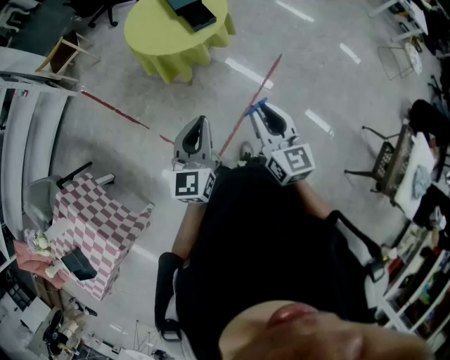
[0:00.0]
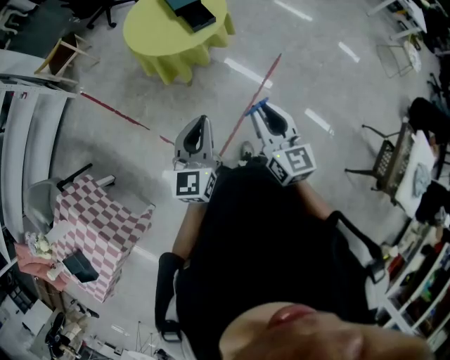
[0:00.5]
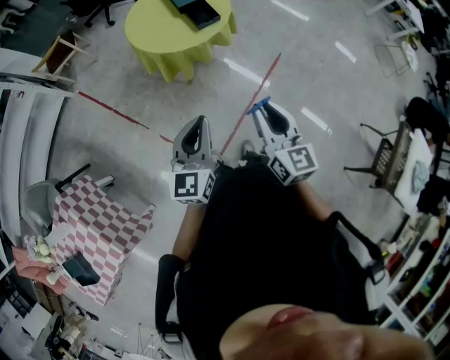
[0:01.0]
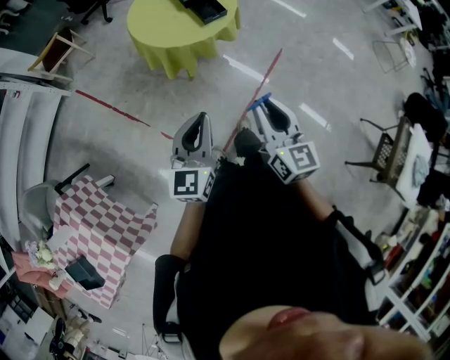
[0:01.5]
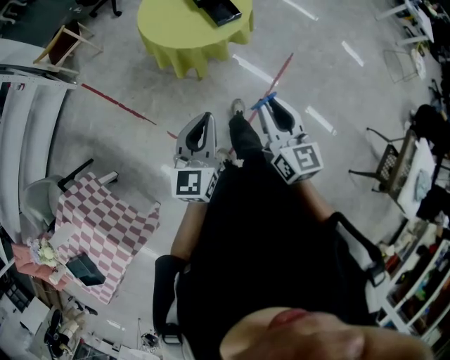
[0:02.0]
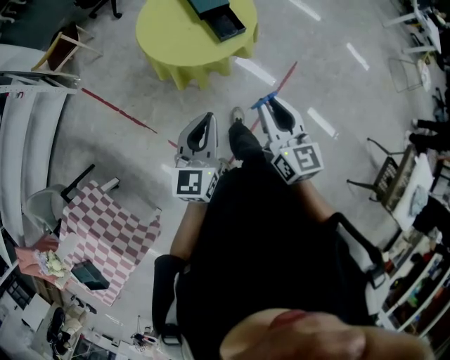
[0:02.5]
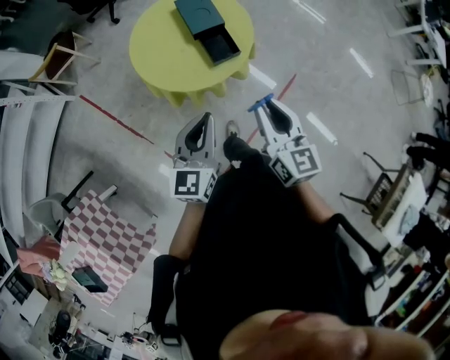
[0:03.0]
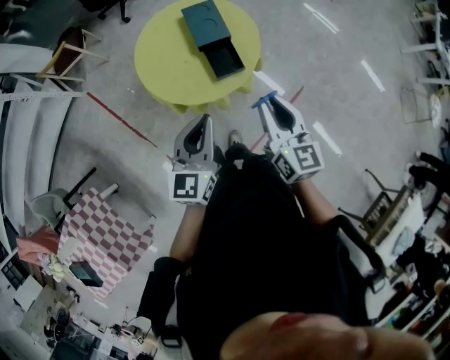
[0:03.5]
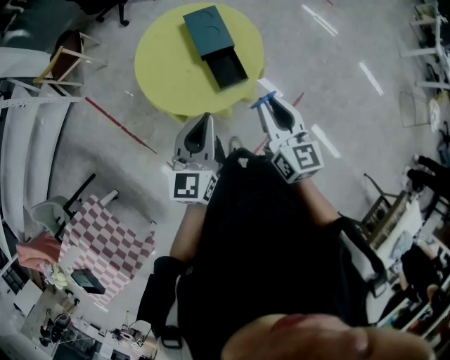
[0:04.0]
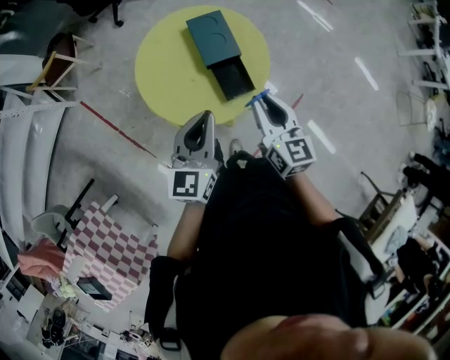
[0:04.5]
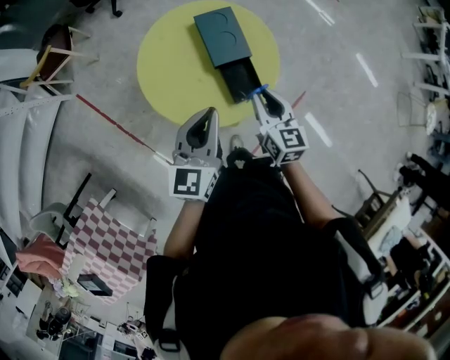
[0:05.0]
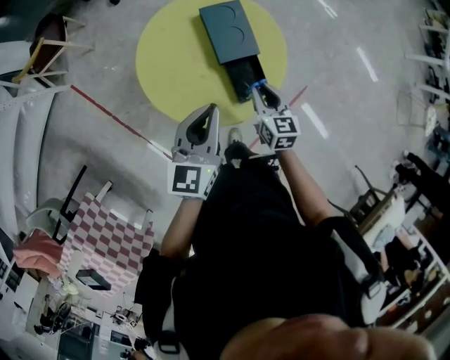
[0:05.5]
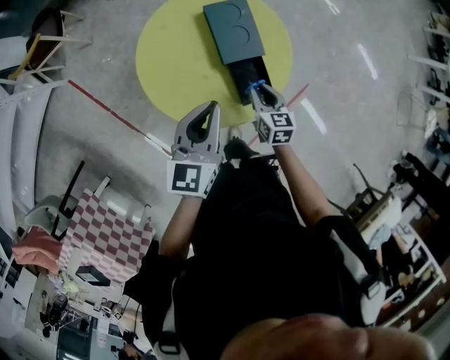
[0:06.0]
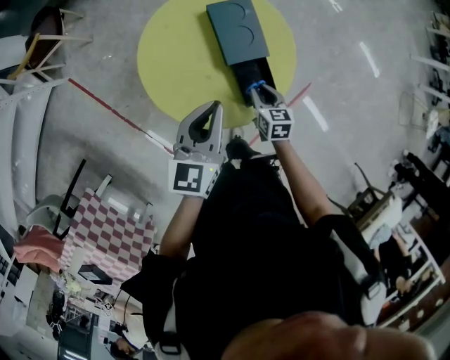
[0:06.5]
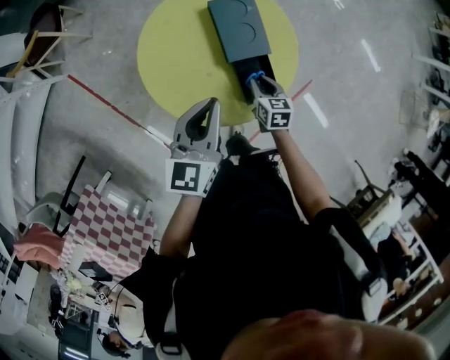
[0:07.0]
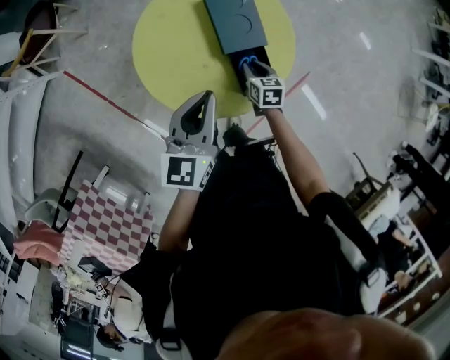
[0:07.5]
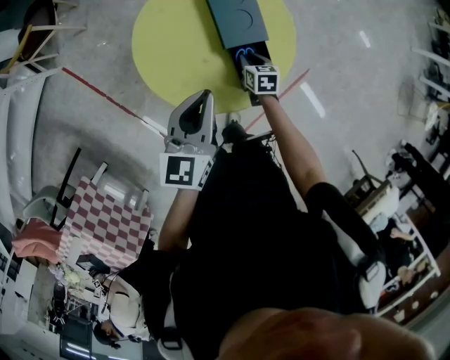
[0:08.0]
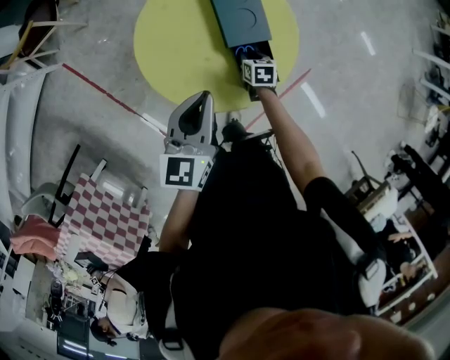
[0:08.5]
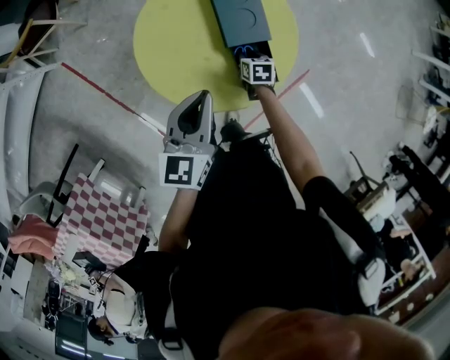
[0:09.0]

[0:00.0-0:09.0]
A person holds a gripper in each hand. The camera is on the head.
0:00.0 to 0:02.0: The left gripper goes roughly 10 cm to the left. The right gripper shifts roughly 10 cm to the left and forward.
0:02.0 to 0:04.5: The two grippers go some 40 cm forward.
0:04.5 to 0:07.0: The left gripper is displaced forward, downward and to the left by about 15 cm, while the right gripper heads downward, covering roughly 30 cm, and angles its fingers downward, by approximately 30 degrees.
0:07.0 to 0:09.0: The right gripper heads downward, covering about 10 cm.

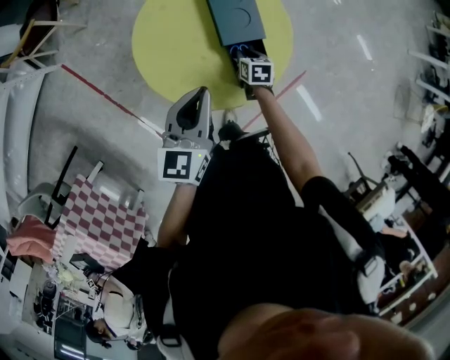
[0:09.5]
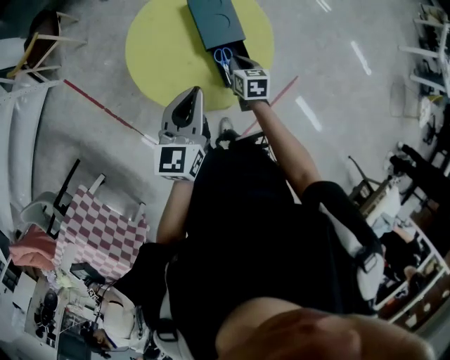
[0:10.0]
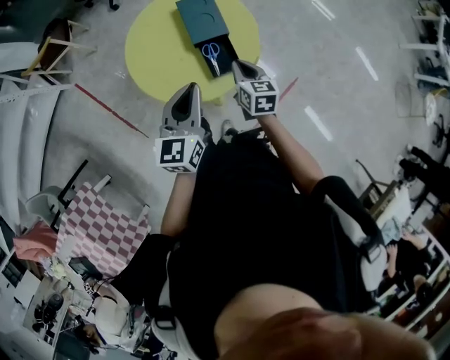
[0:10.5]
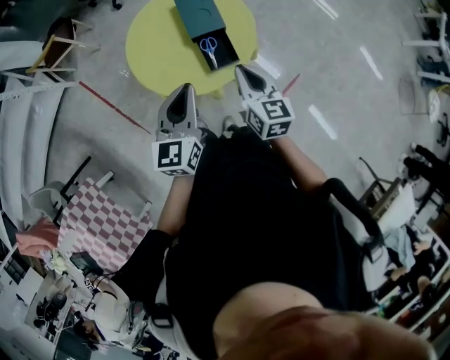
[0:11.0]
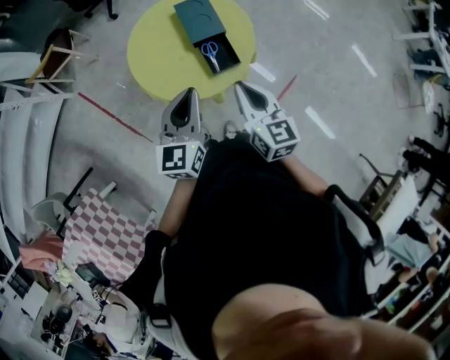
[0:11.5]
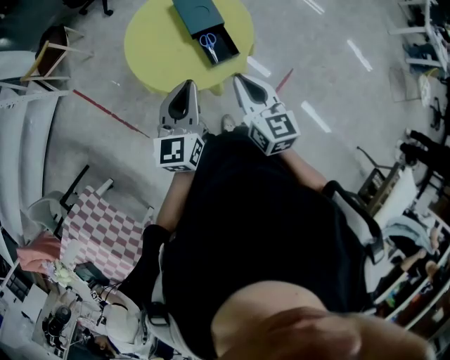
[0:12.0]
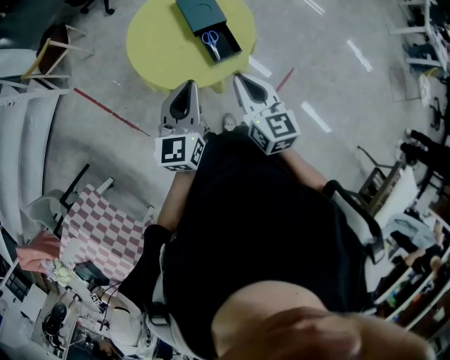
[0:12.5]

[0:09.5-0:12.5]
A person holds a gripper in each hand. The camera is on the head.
0:09.5 to 0:11.0: The right gripper moves upward and backward, some 35 cm, and tips its fingers upward by approximately 40 degrees. The left gripper moves backward, to the right and upward, about 15 cm.
0:11.0 to 0:12.5: The right gripper goes about 10 cm backward, to the left and upward. The left gripper shifts by some 5 cm.

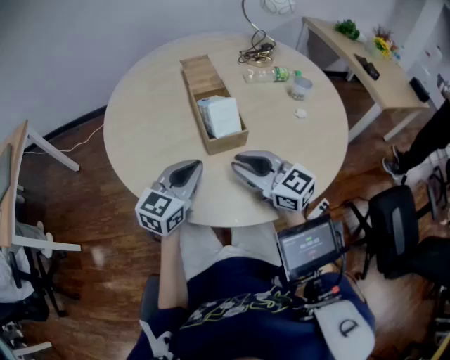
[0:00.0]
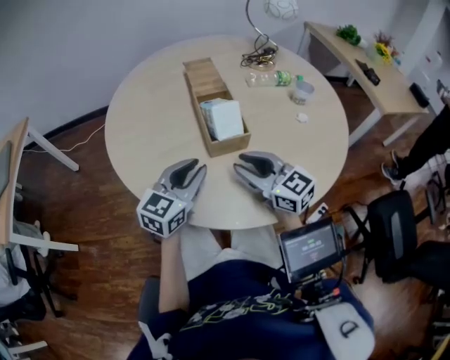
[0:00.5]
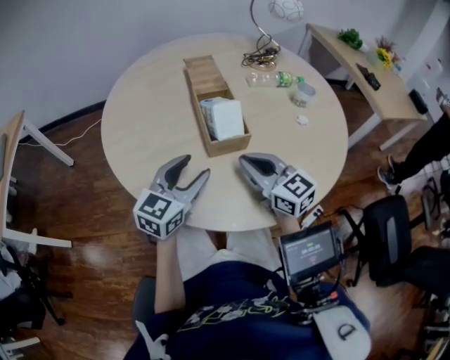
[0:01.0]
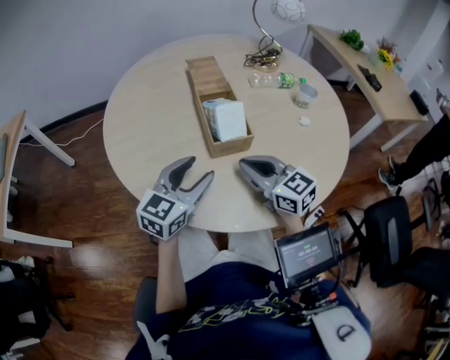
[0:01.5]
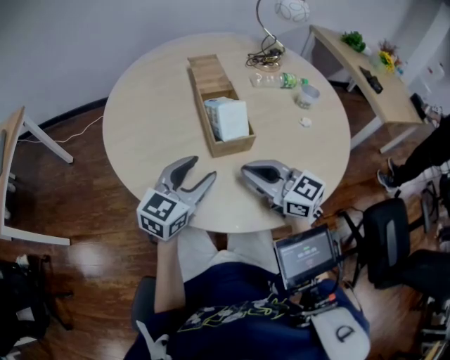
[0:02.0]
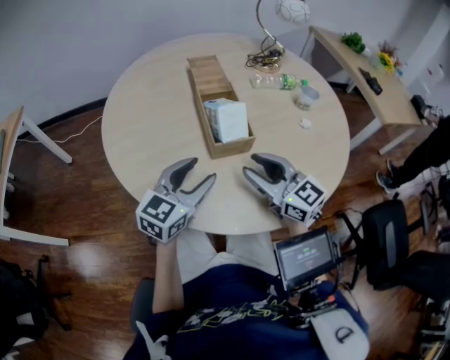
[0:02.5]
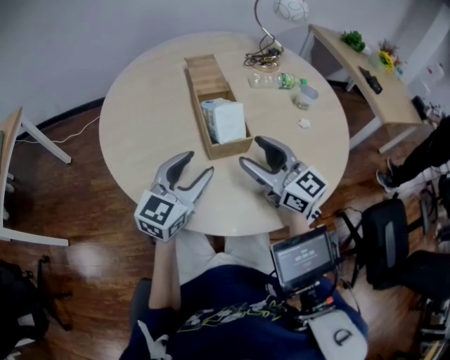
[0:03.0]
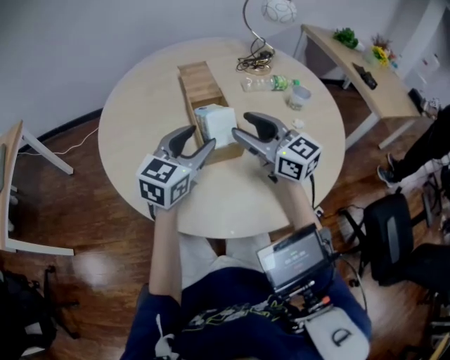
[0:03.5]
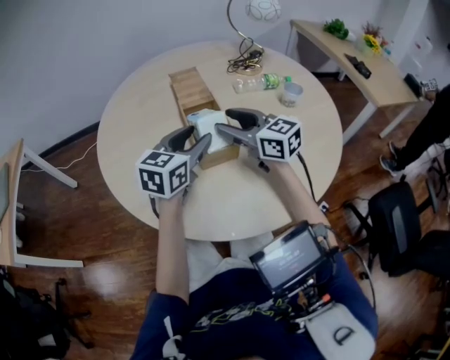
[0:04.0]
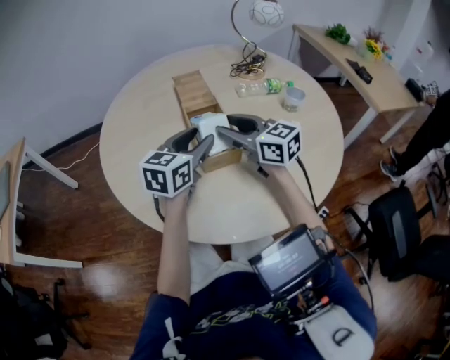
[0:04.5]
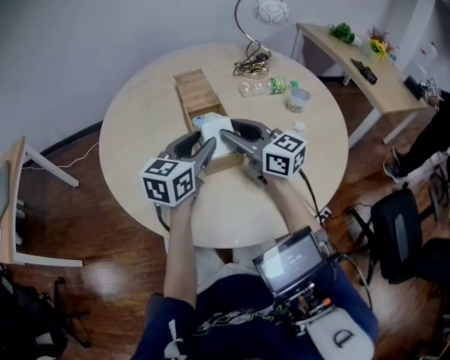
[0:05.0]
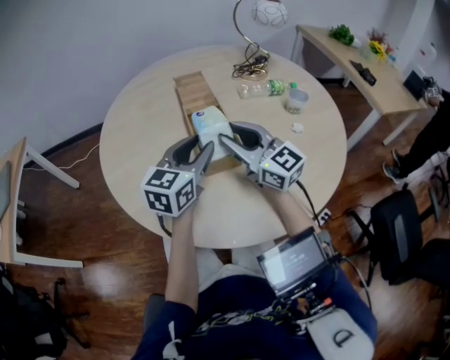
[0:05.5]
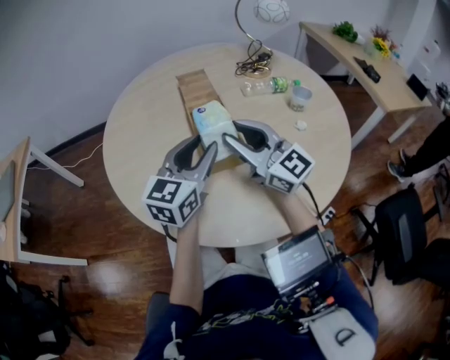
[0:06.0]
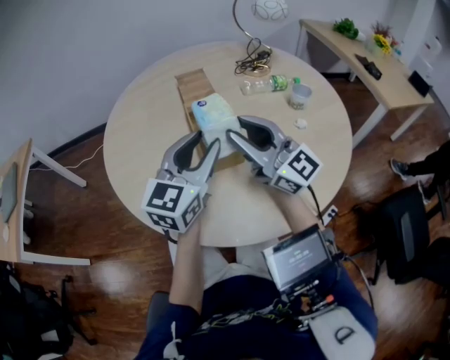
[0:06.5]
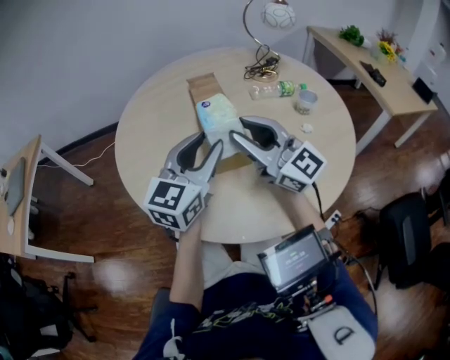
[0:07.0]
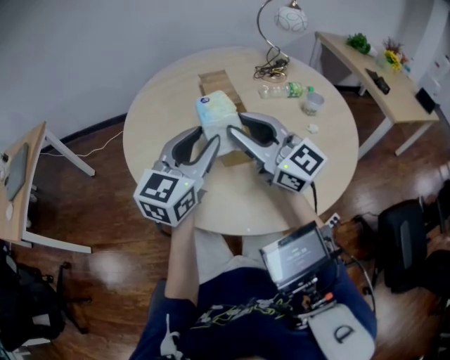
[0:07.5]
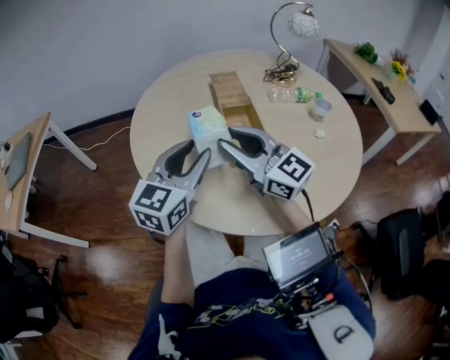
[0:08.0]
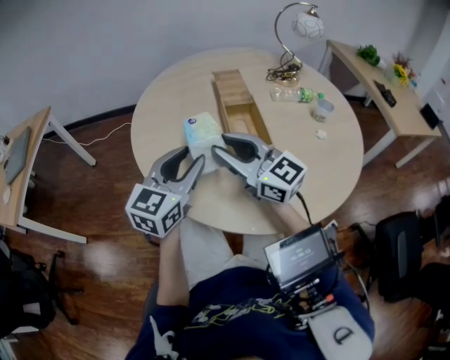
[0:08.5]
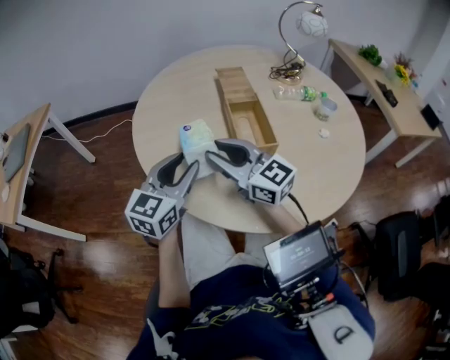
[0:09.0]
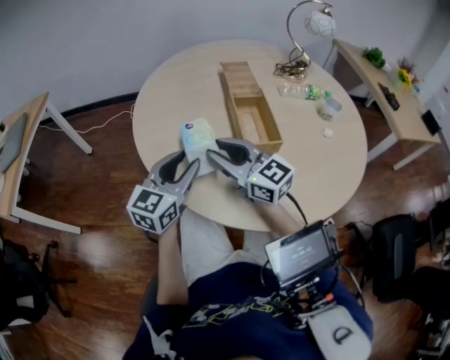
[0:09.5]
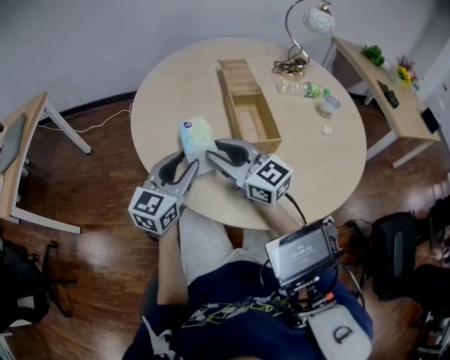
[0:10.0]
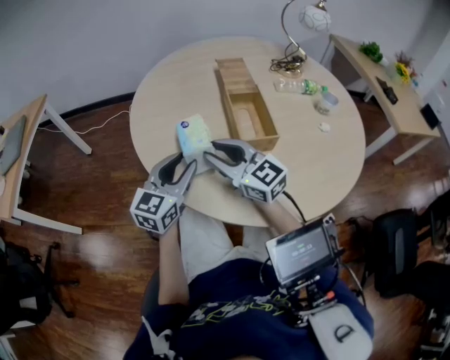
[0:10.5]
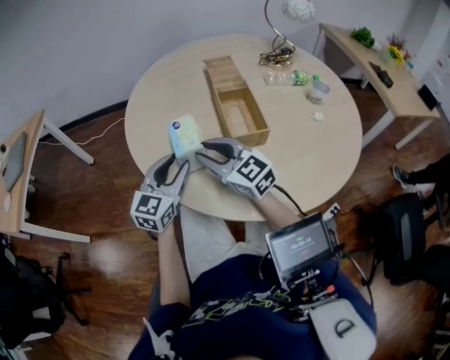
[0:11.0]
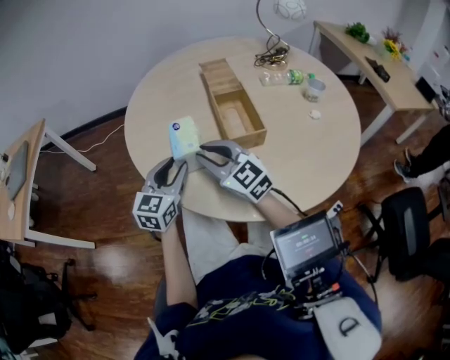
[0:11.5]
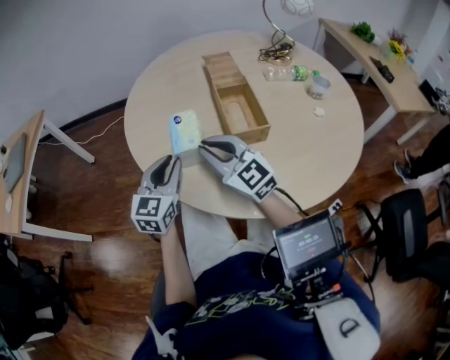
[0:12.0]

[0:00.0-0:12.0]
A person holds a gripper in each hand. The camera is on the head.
0:00.0 to 0:02.0: The left gripper opens up.
0:02.0 to 0:04.0: The left gripper travels forward by roughly 10 cm. The right gripper heads forward and upward, covering some 15 cm, and opens.
0:04.0 to 0:06.0: The right gripper shifts by about 5 cm, swivels approximately 20 degrees, and closes.
0:06.0 to 0:08.0: Both grippers travel together to the left, approximately 10 cm.
0:08.0 to 0:10.0: The two grippers go about 10 cm downward and to the left.
0:10.0 to 0:12.0: There are only small adjustments of the grippers.

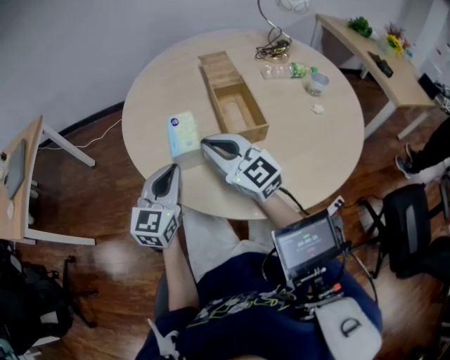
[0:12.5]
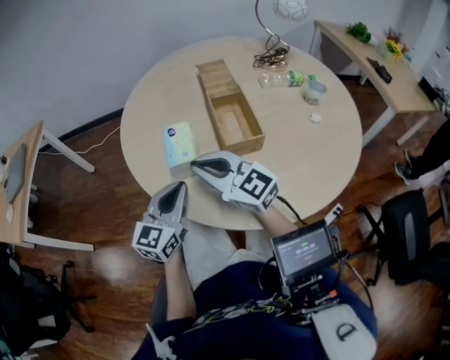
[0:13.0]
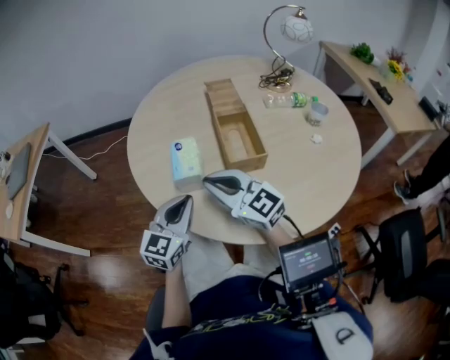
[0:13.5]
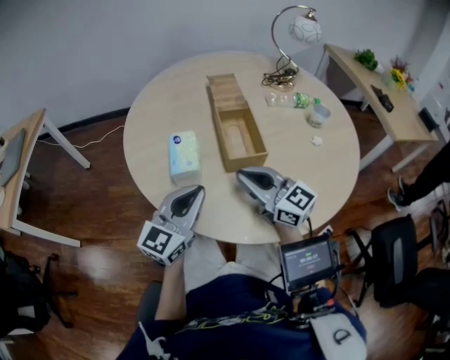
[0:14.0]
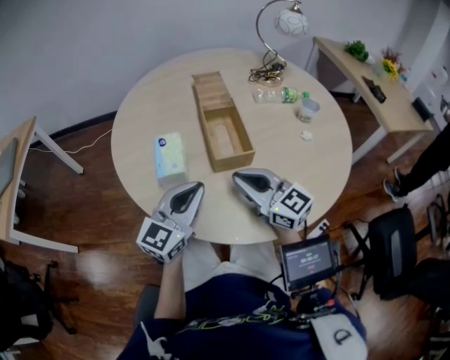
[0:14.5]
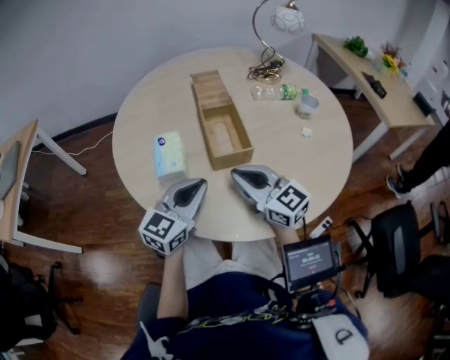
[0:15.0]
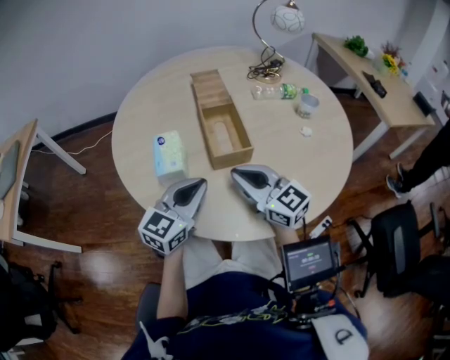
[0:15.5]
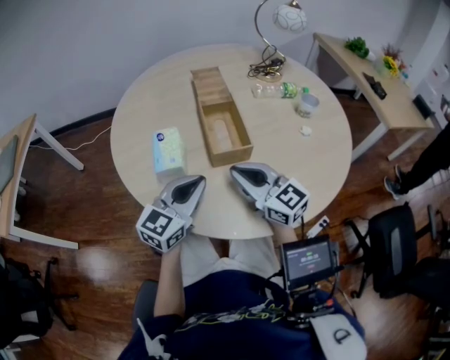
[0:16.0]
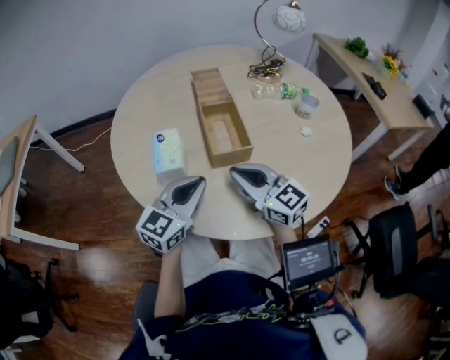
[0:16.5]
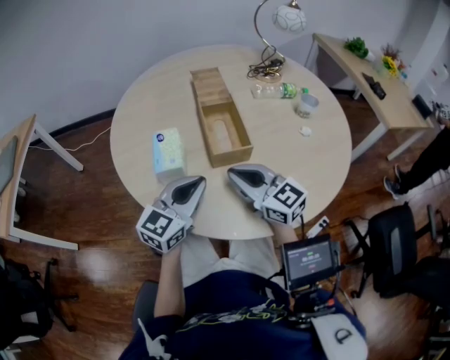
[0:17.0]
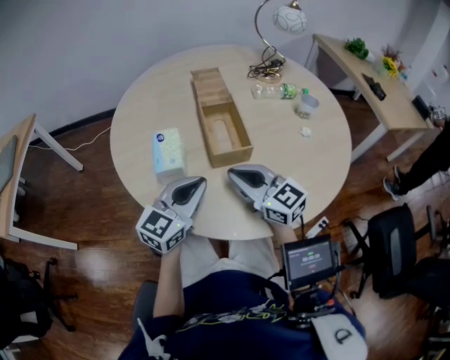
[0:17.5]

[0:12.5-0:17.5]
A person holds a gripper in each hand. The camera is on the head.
0:12.5 to 0:15.0: Both grippers travel together to the right, about 10 cm.
0:15.0 to 0:17.5: Both grippers stay put.
